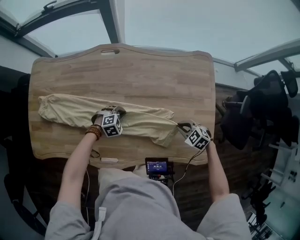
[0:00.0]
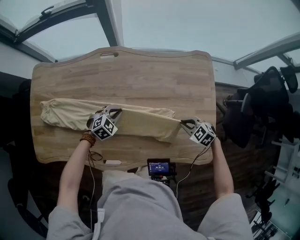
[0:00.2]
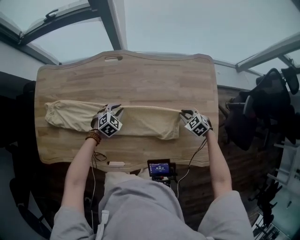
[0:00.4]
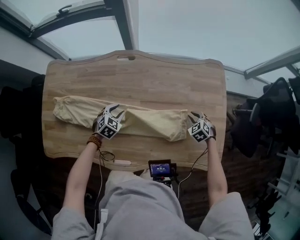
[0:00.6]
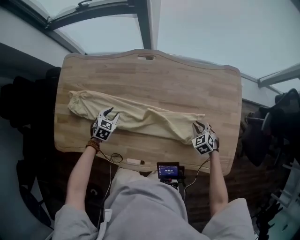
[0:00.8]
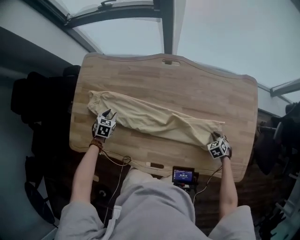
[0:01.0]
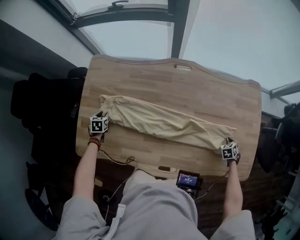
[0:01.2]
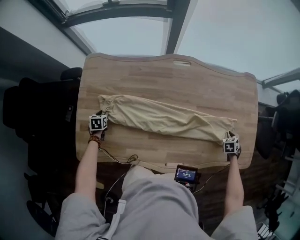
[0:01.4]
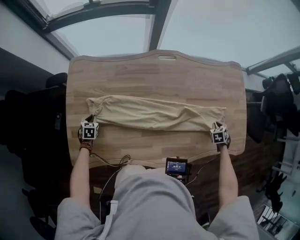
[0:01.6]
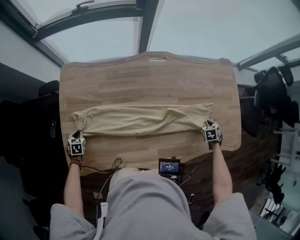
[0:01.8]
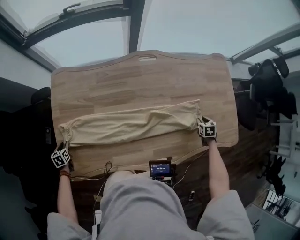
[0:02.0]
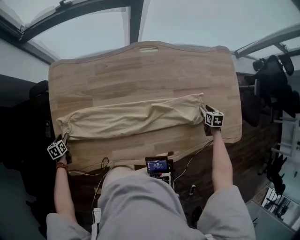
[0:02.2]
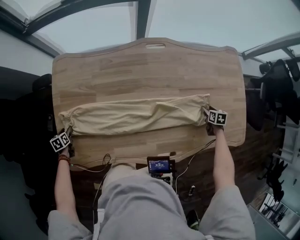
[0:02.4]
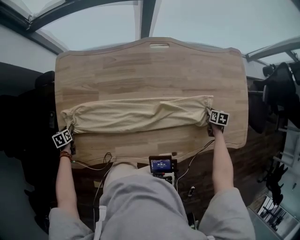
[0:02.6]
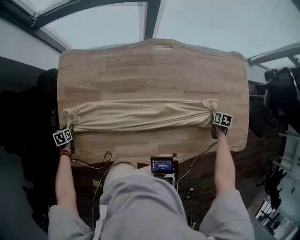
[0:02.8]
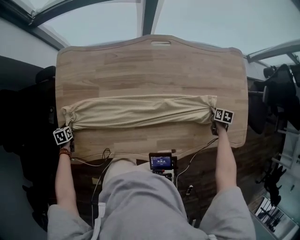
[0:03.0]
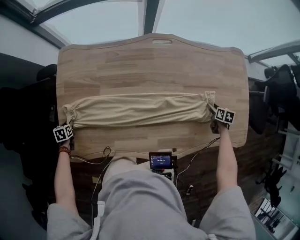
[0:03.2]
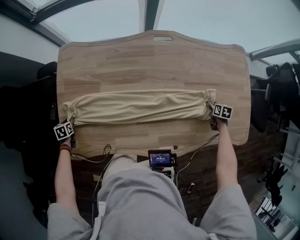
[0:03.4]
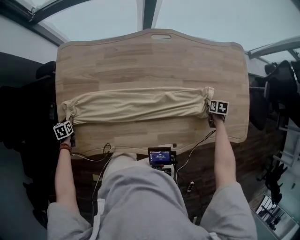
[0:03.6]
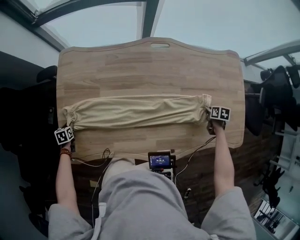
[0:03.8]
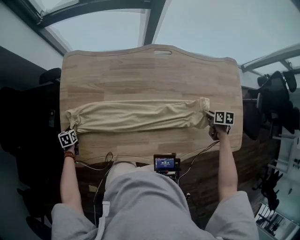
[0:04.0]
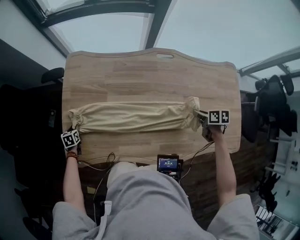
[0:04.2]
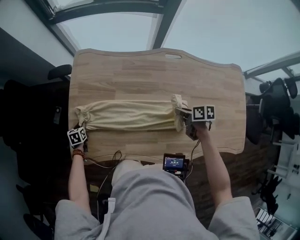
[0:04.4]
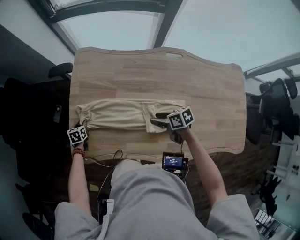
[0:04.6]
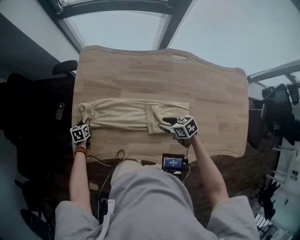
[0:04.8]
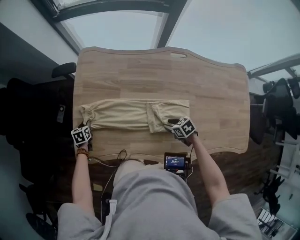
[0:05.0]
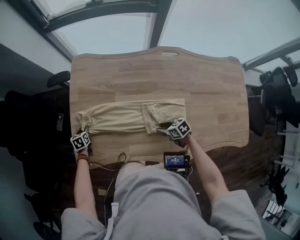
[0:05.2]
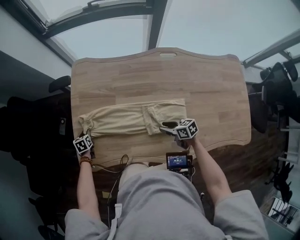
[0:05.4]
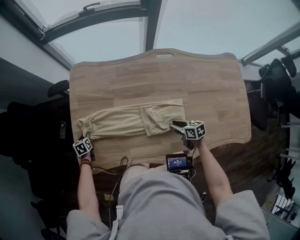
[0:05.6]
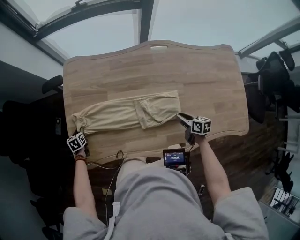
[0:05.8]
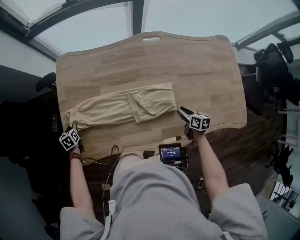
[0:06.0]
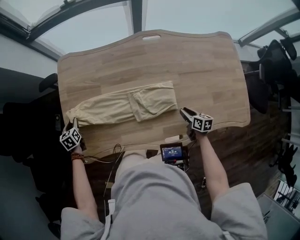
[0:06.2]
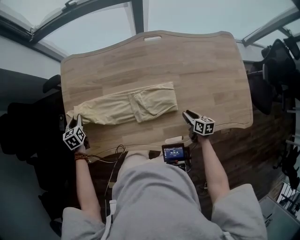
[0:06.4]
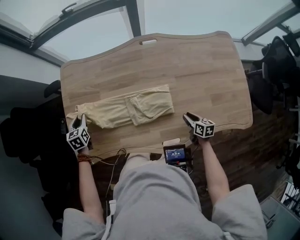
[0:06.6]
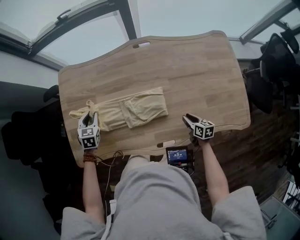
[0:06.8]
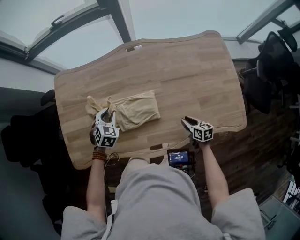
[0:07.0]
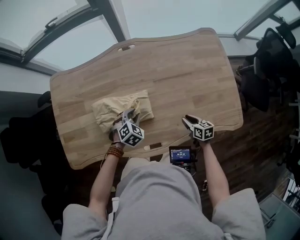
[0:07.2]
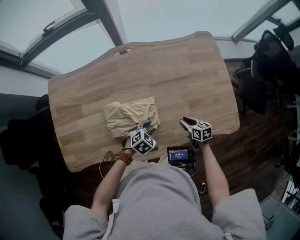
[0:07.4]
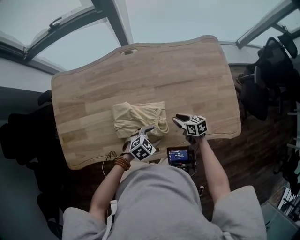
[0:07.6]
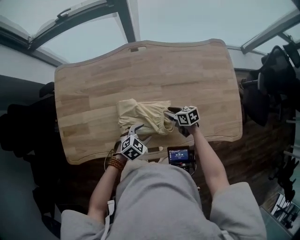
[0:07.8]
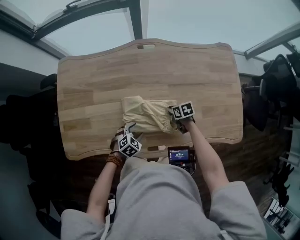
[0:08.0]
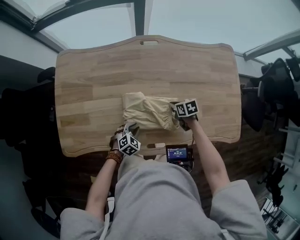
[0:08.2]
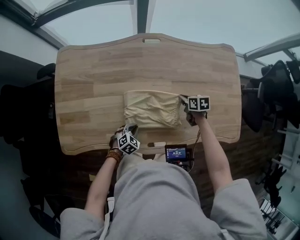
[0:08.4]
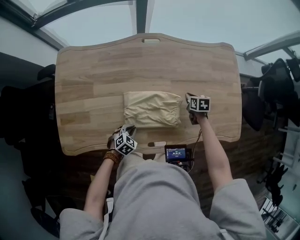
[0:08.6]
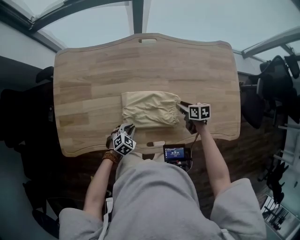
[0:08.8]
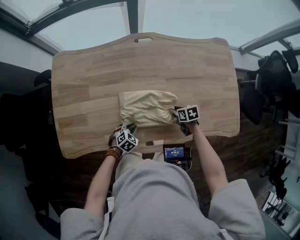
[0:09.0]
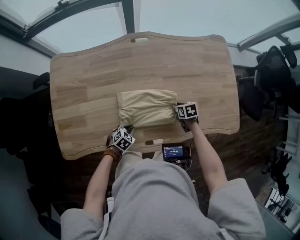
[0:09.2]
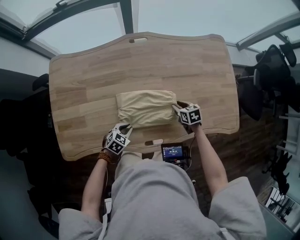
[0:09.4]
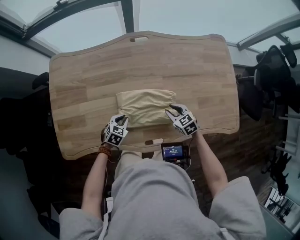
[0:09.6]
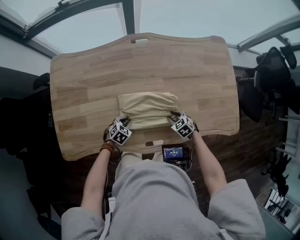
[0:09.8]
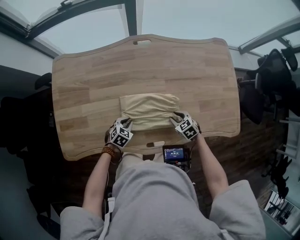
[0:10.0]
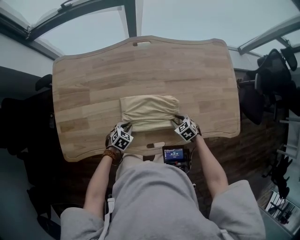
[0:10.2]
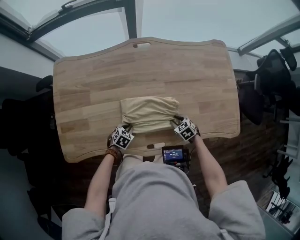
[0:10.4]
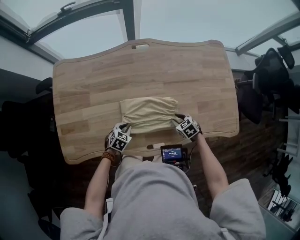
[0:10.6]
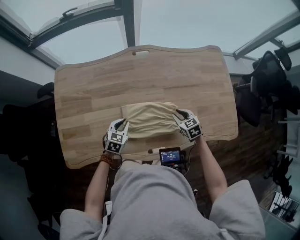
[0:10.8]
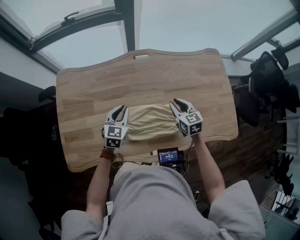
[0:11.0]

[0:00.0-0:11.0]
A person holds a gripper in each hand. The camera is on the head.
0:00.0 to 0:01.6: The left gripper moves approximately 5 cm upward and comes back, rolls counterclockwise, seen from behind, by about 60 degrees, and opens and closes again; the right gripper travels downward and back again, about 5 cm each way, and turns by roughly 60 degrees.
0:01.6 to 0:03.2: The left gripper changes place by roughly 15 cm, swivels some 20 degrees, and opens, then closes again. The right gripper moves downward, approximately 5 cm, turns by about 40 degrees, and opens its fingers.
0:03.2 to 0:04.8: The right gripper moves some 40 cm, rotates approximately 50 degrees, and closes and opens again.
0:04.8 to 0:06.2: The left gripper moves upward, about 10 cm, while the right gripper changes place by roughly 25 cm, and swivels about 50 degrees.
0:06.2 to 0:07.8: The left gripper shifts by about 60 cm, rotates roughly 70 degrees, and opens its fingers. Meanwhile the right gripper turns by some 30 degrees.
0:07.8 to 0:09.4: The left gripper shifts roughly 15 cm to the left and downward, and closes, while the right gripper moves roughly 5 cm forward and comes back, rotates some 20 degrees, and closes, then reopens.
0:09.4 to 0:11.0: The left gripper heads upward and forward, covering roughly 25 cm, and rotates approximately 40 degrees, while the right gripper shifts roughly 15 cm upward and to the left, and changes its angle by approximately 30 degrees.

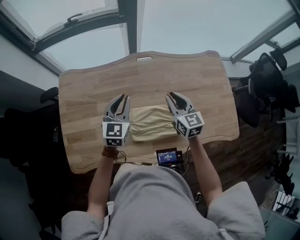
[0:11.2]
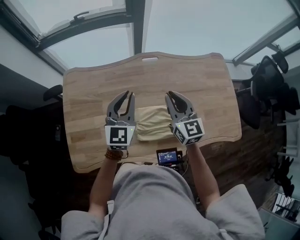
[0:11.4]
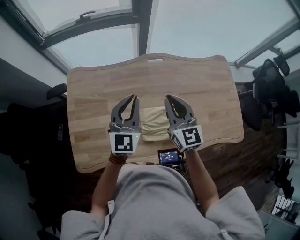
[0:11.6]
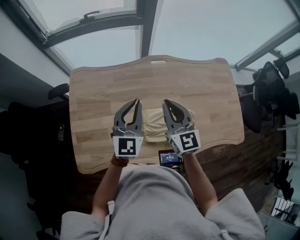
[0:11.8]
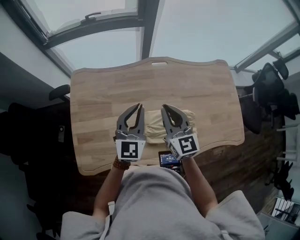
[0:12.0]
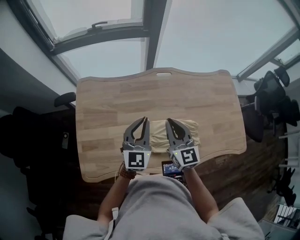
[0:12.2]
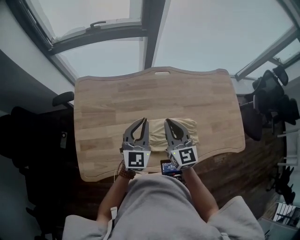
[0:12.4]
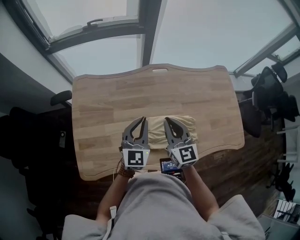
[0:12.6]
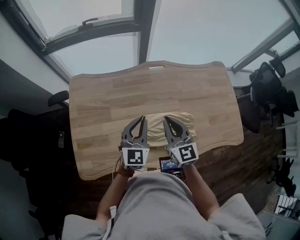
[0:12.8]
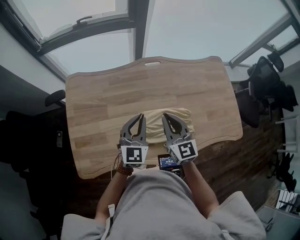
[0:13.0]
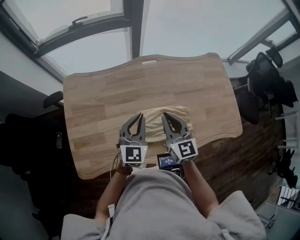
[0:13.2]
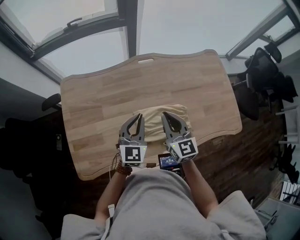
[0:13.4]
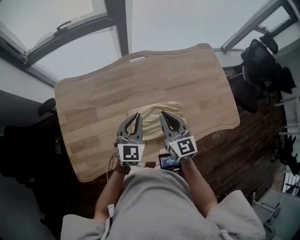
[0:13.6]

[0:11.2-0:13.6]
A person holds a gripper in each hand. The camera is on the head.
0:11.2 to 0:12.4: The right gripper heads to the left and backward, covering about 15 cm; the left gripper is displaced backward and to the left by approximately 10 cm.
0:12.4 to 0:13.6: The grippers both shift to the right by approximately 10 cm.

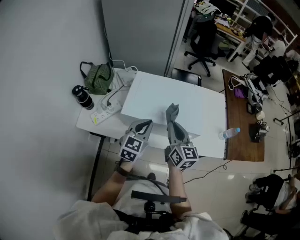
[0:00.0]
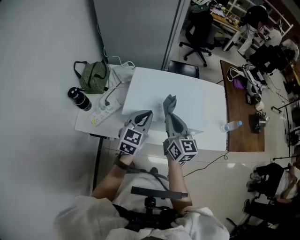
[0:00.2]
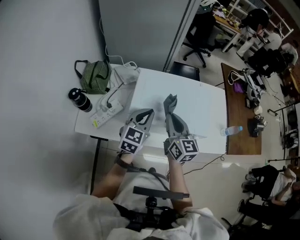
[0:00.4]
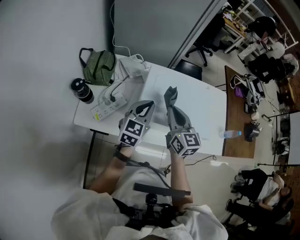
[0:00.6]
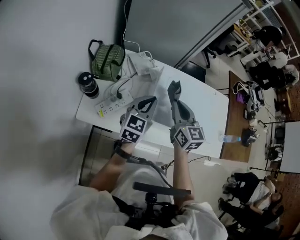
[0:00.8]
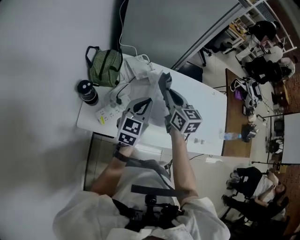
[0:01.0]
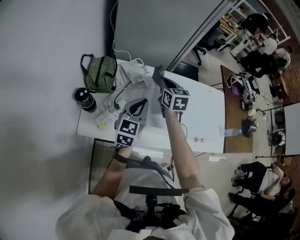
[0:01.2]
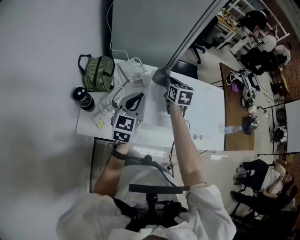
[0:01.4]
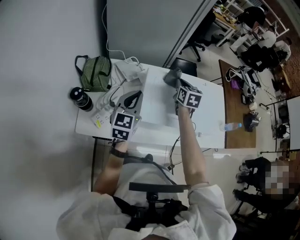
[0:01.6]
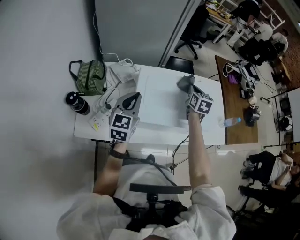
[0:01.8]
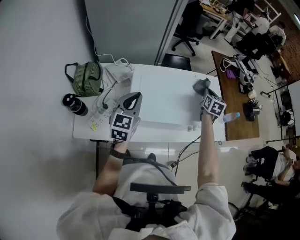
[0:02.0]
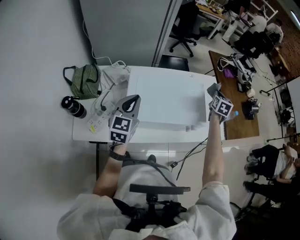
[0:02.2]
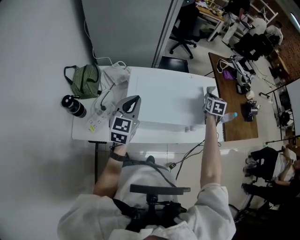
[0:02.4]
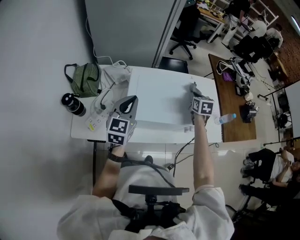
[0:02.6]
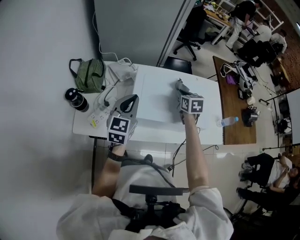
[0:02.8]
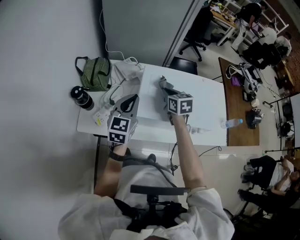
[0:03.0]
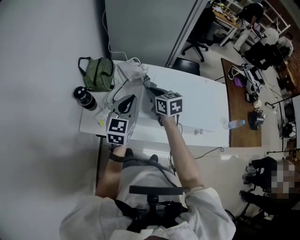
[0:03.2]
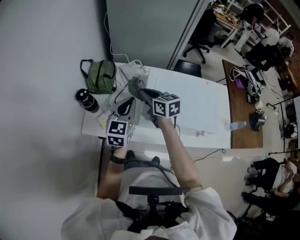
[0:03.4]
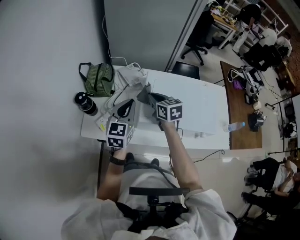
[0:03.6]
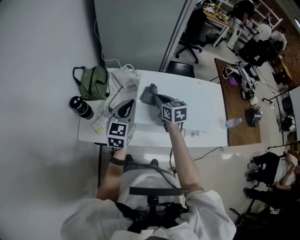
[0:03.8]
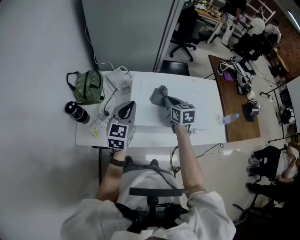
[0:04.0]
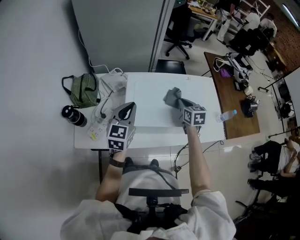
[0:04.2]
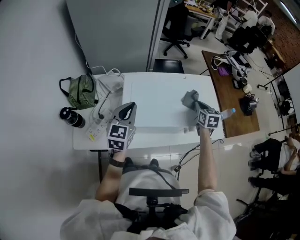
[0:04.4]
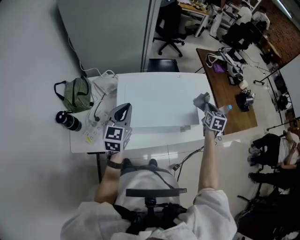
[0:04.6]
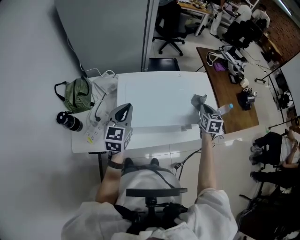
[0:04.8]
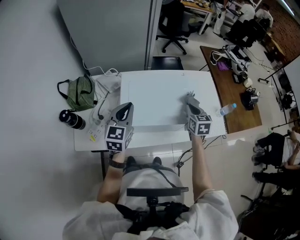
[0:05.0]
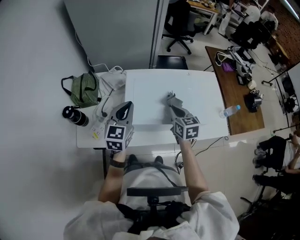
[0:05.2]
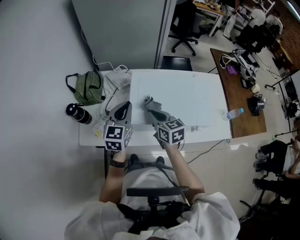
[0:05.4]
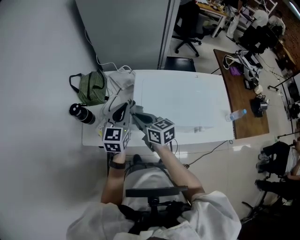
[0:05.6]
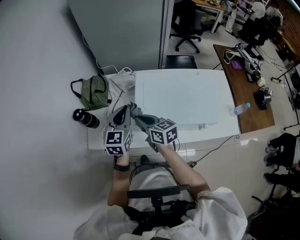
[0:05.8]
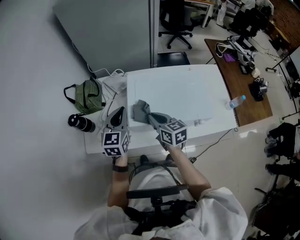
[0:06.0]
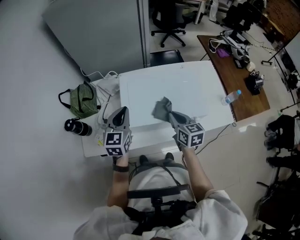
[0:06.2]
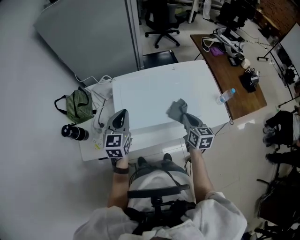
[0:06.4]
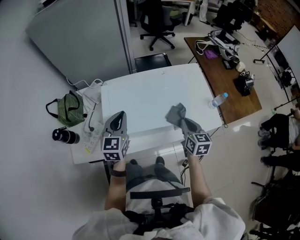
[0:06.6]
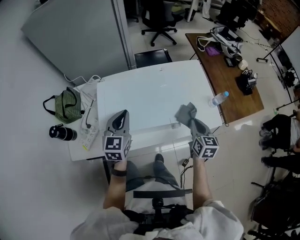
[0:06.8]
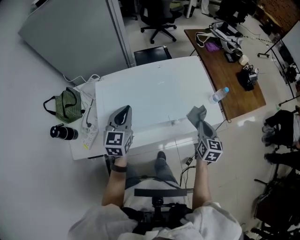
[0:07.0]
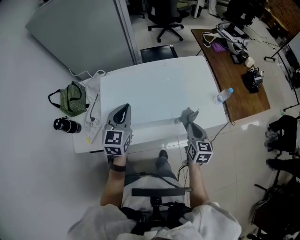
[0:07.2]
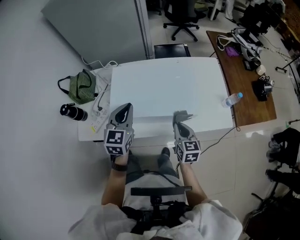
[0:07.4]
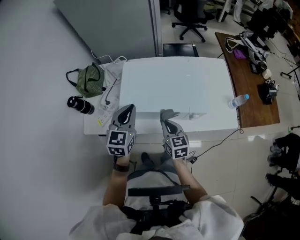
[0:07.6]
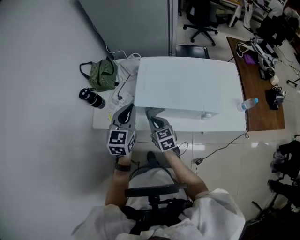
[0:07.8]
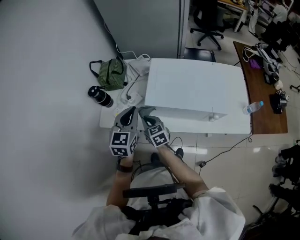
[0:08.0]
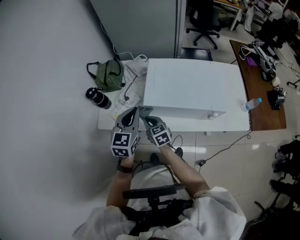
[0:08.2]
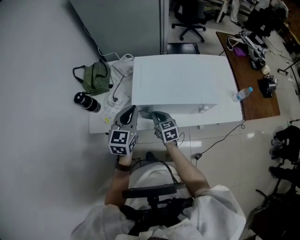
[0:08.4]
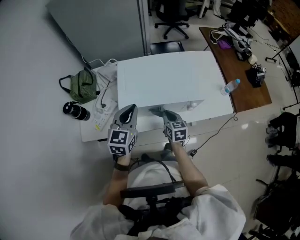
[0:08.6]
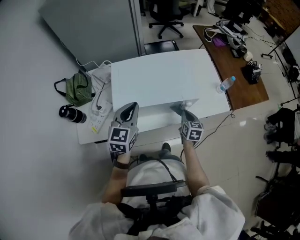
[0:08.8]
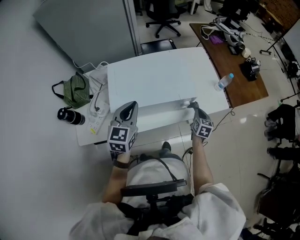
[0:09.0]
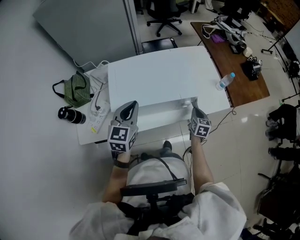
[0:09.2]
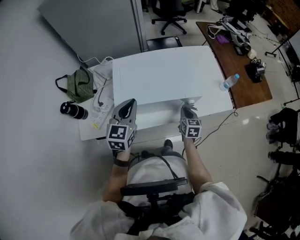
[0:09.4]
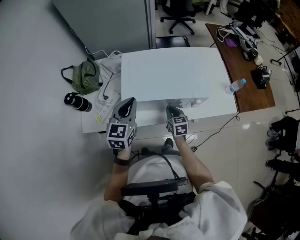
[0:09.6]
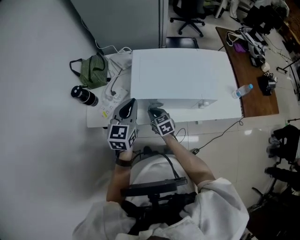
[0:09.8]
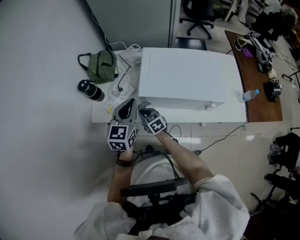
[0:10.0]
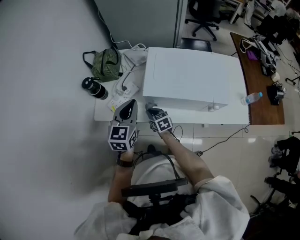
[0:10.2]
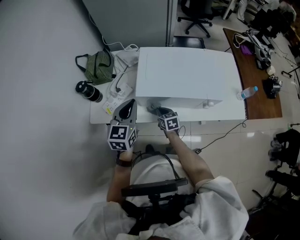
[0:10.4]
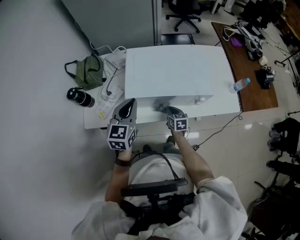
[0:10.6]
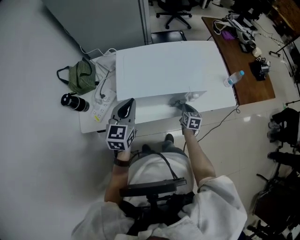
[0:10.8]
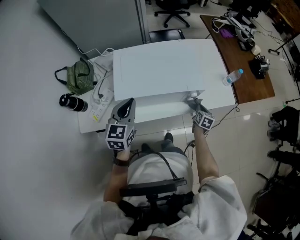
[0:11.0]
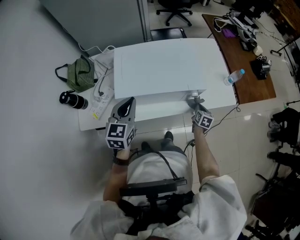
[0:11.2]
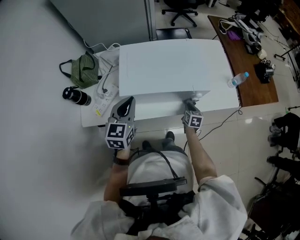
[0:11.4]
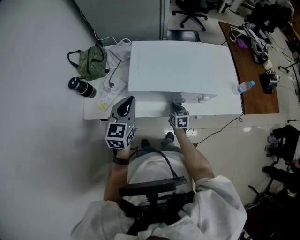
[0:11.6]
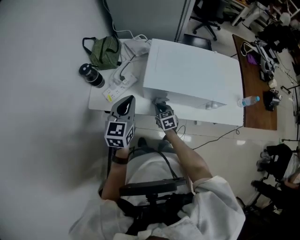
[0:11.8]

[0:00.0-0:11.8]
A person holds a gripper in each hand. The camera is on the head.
0:00.0 to 0:01.4: The left gripper is displaced to the left and forward by roughly 35 cm. Meanwhile the right gripper travels forward and to the left by about 40 cm, and rotates approximately 30 degrees.
0:03.0 to 0:04.4: The left gripper moves about 10 cm. The right gripper ends up roughly 30 cm from where it was, and swivels approximately 30 degrees.
0:04.4 to 0:06.0: The left gripper moves roughly 5 cm. The right gripper shifts by roughly 30 cm, and turns by roughly 30 degrees.
0:06.0 to 0:07.4: The left gripper changes place by roughly 20 cm. The right gripper swivels some 20 degrees.
0:07.4 to 0:08.8: The right gripper moves downward, approximately 10 cm.
0:08.8 to 0:10.4: The right gripper shifts by approximately 30 cm, and rotates approximately 30 degrees; the left gripper ends up roughly 15 cm from where it was.
